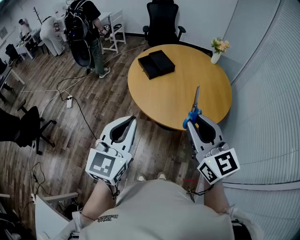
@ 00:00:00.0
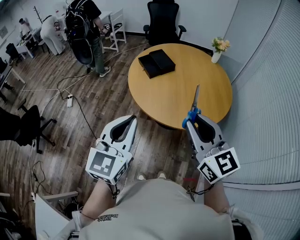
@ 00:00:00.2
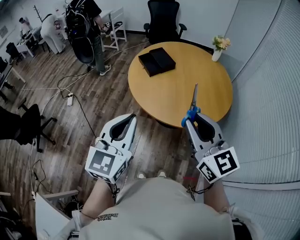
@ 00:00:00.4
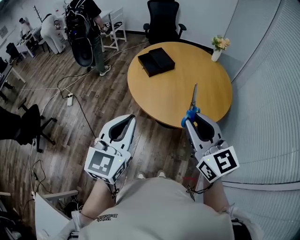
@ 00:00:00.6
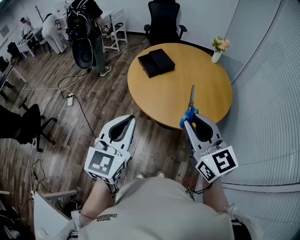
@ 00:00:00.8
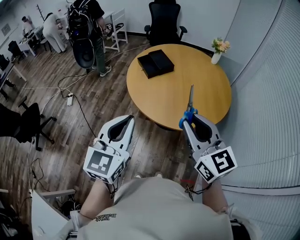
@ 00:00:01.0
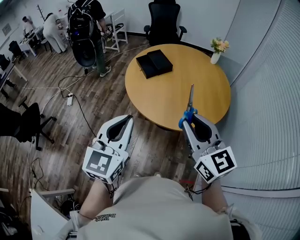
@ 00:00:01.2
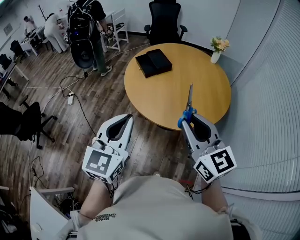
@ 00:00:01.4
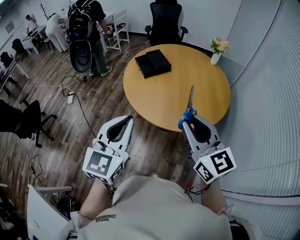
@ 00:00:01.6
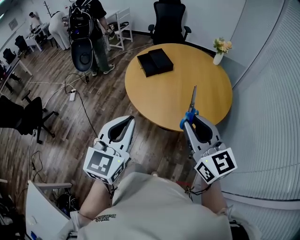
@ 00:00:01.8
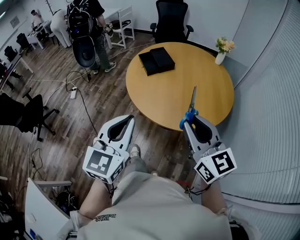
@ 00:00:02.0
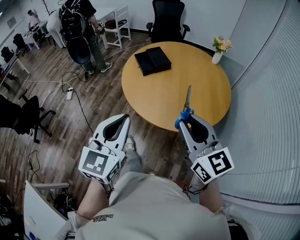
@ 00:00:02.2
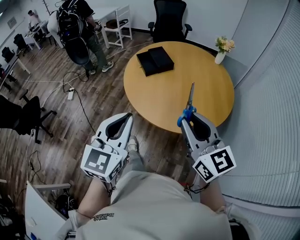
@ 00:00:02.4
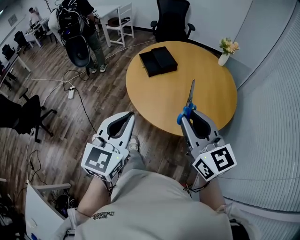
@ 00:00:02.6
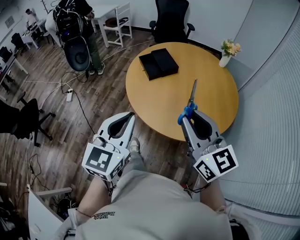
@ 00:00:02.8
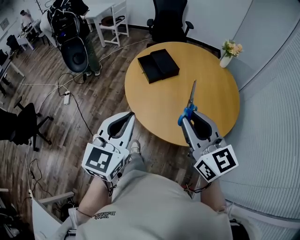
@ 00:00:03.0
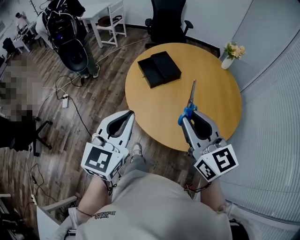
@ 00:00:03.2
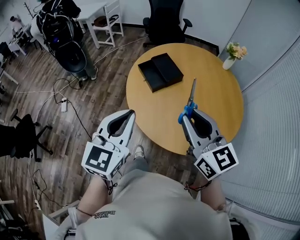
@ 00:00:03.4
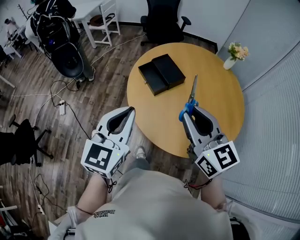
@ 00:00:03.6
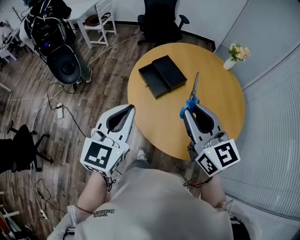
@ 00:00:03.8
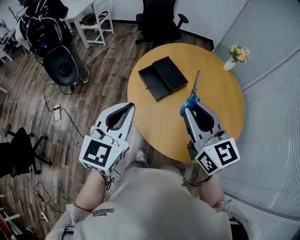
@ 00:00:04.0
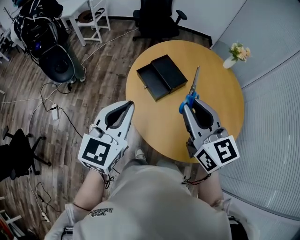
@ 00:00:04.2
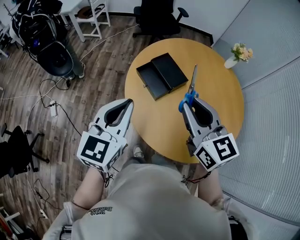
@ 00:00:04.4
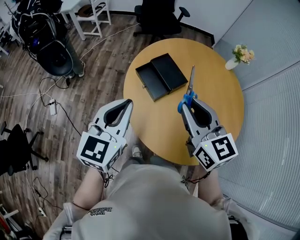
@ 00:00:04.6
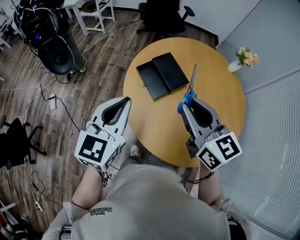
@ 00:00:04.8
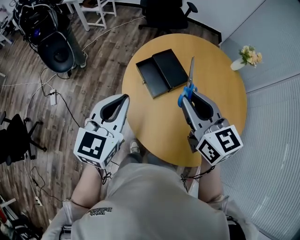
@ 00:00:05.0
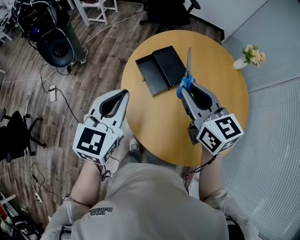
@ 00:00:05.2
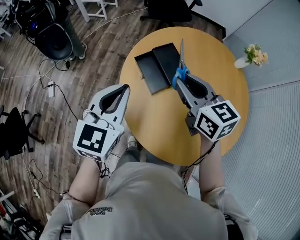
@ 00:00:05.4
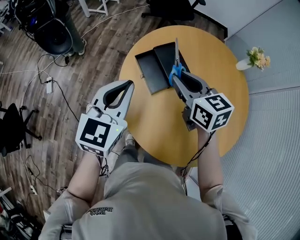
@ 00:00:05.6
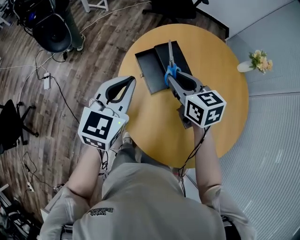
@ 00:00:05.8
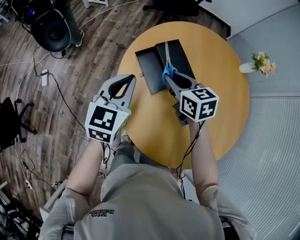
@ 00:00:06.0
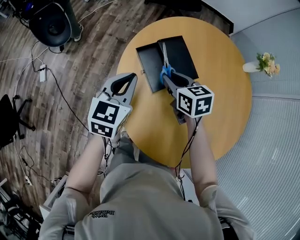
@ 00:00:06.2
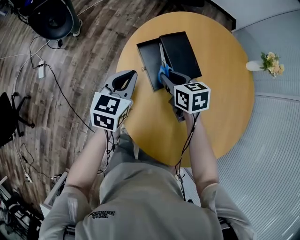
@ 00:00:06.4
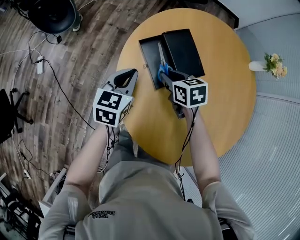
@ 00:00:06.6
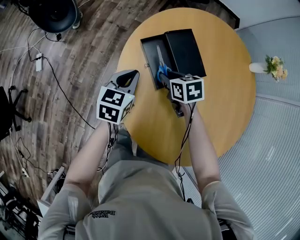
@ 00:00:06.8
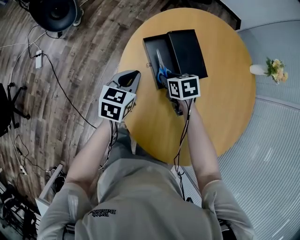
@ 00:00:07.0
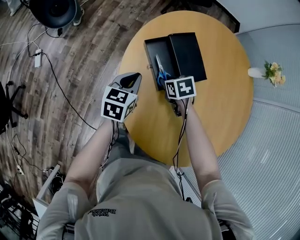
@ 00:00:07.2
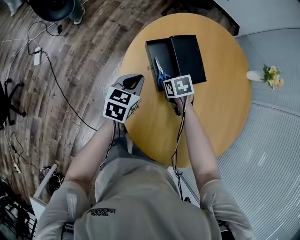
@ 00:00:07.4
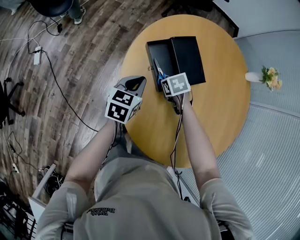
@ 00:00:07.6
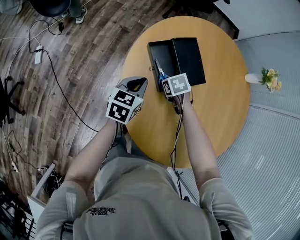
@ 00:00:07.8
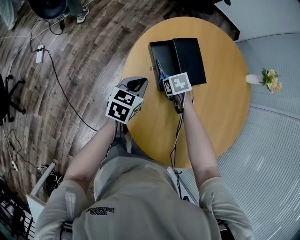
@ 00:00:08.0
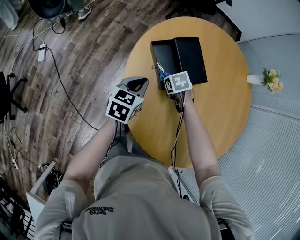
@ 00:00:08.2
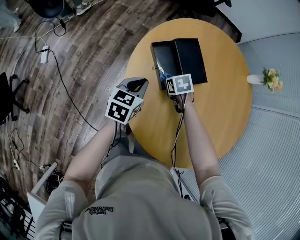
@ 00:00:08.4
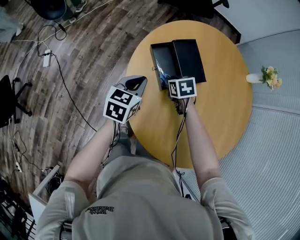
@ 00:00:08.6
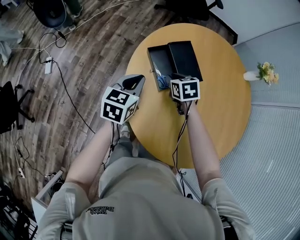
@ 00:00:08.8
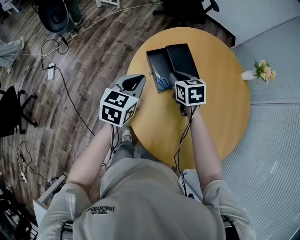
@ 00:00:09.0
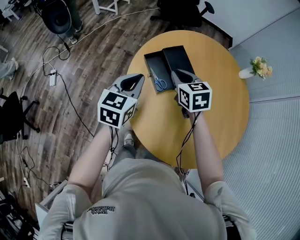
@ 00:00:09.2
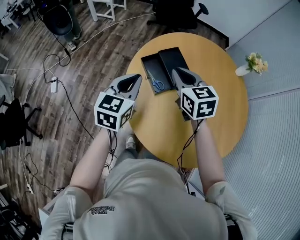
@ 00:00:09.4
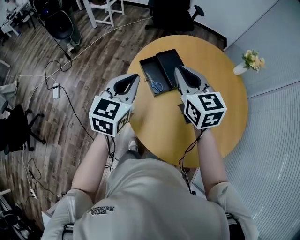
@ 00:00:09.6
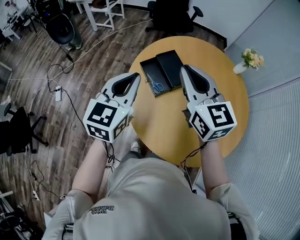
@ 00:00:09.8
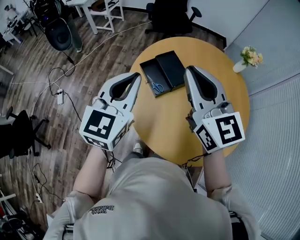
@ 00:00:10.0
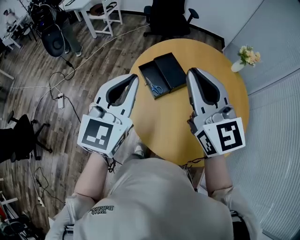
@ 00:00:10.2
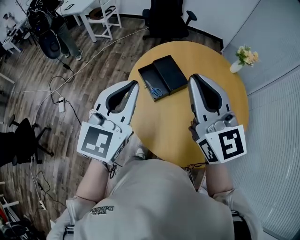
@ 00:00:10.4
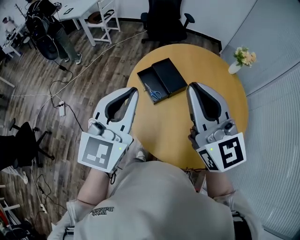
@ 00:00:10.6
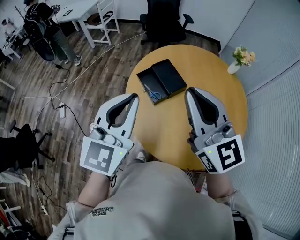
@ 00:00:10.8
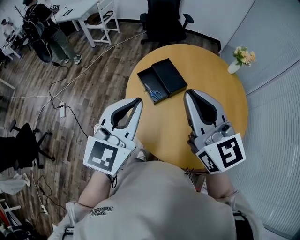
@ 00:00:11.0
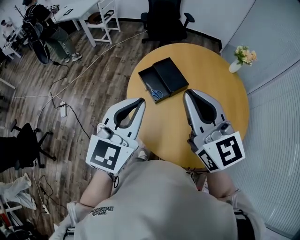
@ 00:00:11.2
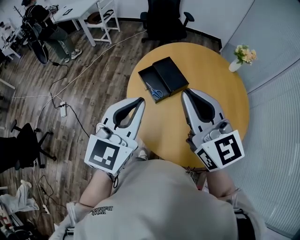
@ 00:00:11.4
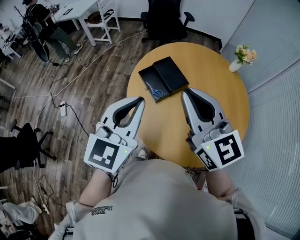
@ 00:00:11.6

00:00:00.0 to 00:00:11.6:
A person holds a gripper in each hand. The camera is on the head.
00:00:00.0 to 00:00:01.4: Both grippers move to the right, some 5 cm.
00:00:01.4 to 00:00:02.8: The grippers both shift forward by roughly 10 cm.
00:00:02.8 to 00:00:04.4: The grippers both shift forward and to the left by roughly 35 cm.
00:00:04.4 to 00:00:05.8: The left gripper is displaced forward and downward by approximately 15 cm, while the right gripper heads forward and downward, covering some 20 cm, and rotates about 30 degrees.
00:00:05.8 to 00:00:07.2: The two grippers go about 25 cm downward. The right gripper tilts its fingers approximately 40 degrees downward; the left gripper changes its angle by some 30 degrees.
00:00:07.2 to 00:00:08.8: The two grippers go some 10 cm upward.
00:00:08.8 to 00:00:10.2: The grippers both shift upward by some 35 cm. The left gripper turns by roughly 40 degrees; the right gripper angles its fingers upward, by roughly 60 degrees.
00:00:10.2 to 00:00:11.6: The left gripper ends up roughly 5 cm from where it was.

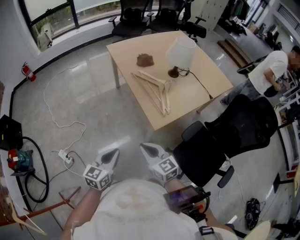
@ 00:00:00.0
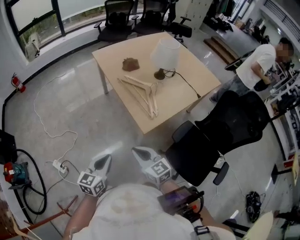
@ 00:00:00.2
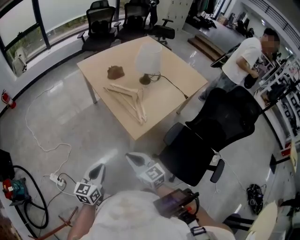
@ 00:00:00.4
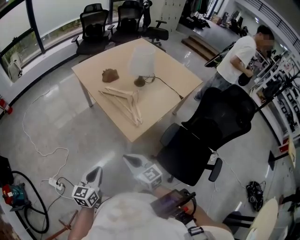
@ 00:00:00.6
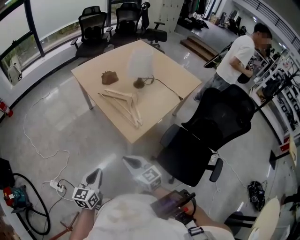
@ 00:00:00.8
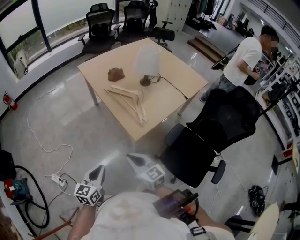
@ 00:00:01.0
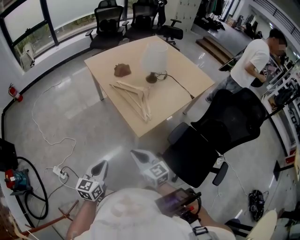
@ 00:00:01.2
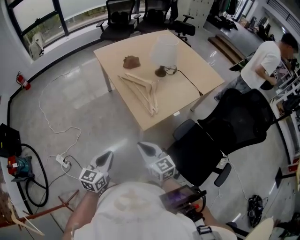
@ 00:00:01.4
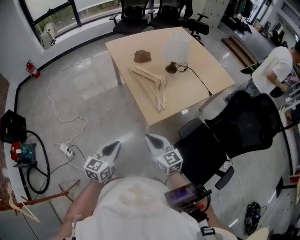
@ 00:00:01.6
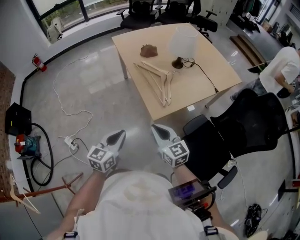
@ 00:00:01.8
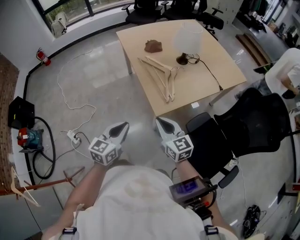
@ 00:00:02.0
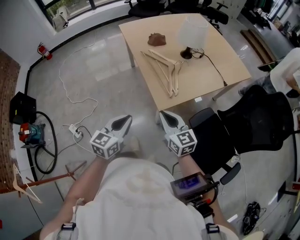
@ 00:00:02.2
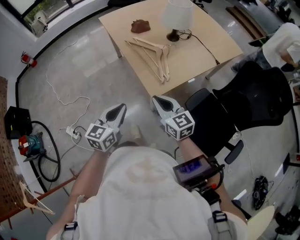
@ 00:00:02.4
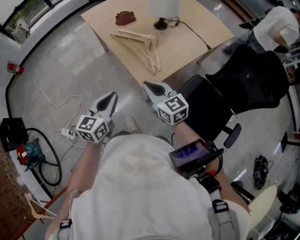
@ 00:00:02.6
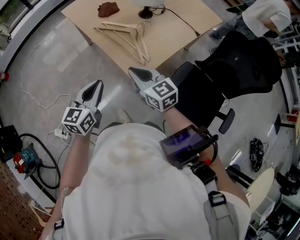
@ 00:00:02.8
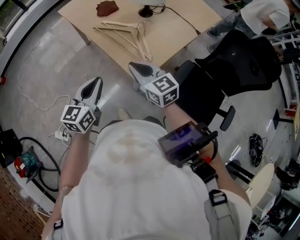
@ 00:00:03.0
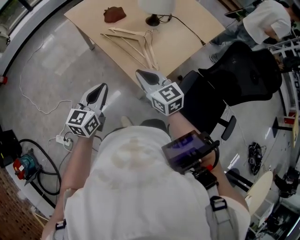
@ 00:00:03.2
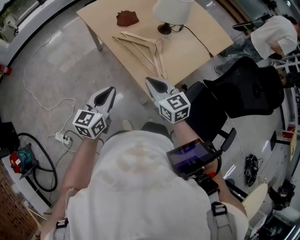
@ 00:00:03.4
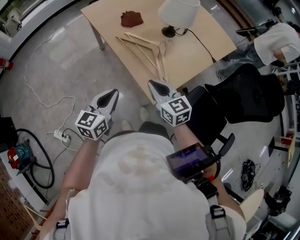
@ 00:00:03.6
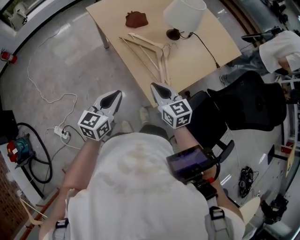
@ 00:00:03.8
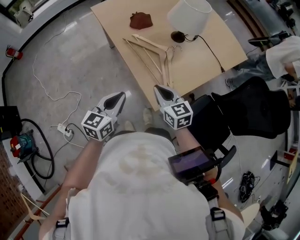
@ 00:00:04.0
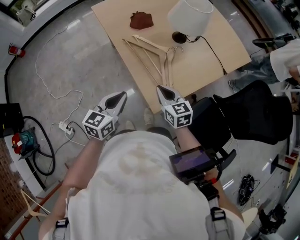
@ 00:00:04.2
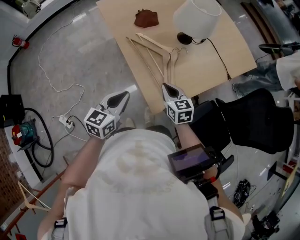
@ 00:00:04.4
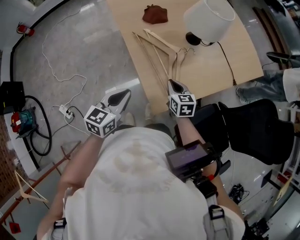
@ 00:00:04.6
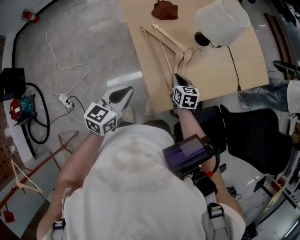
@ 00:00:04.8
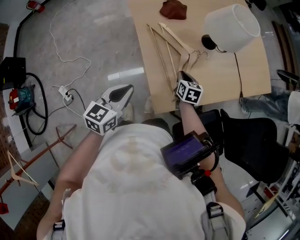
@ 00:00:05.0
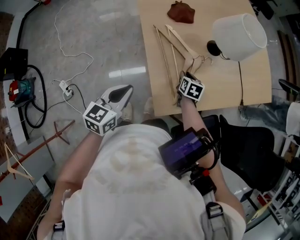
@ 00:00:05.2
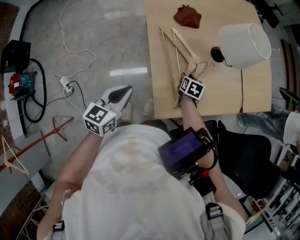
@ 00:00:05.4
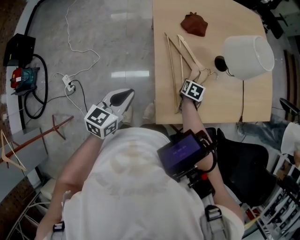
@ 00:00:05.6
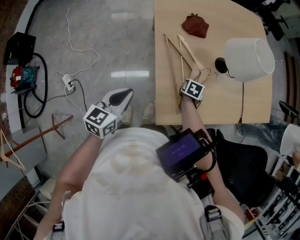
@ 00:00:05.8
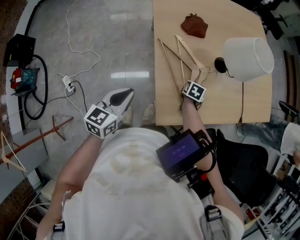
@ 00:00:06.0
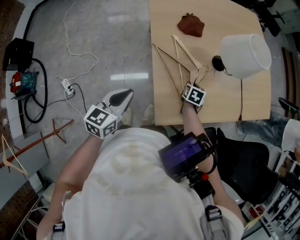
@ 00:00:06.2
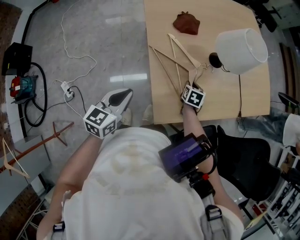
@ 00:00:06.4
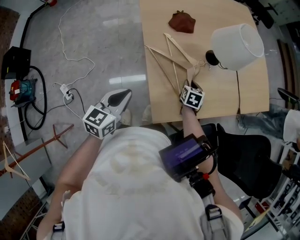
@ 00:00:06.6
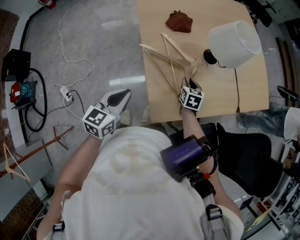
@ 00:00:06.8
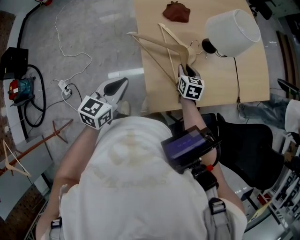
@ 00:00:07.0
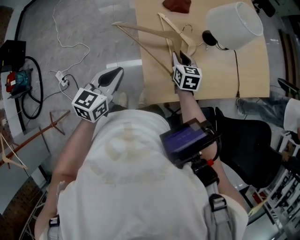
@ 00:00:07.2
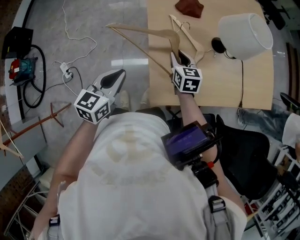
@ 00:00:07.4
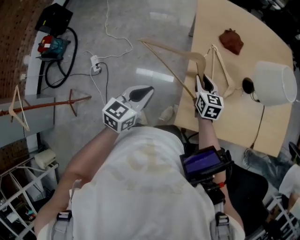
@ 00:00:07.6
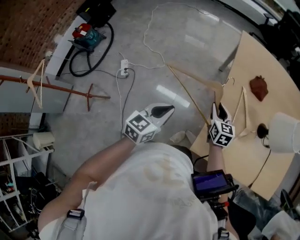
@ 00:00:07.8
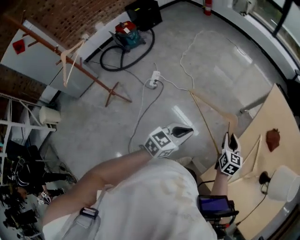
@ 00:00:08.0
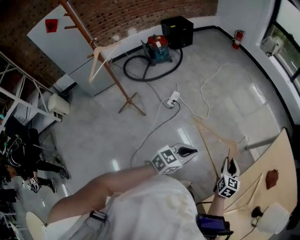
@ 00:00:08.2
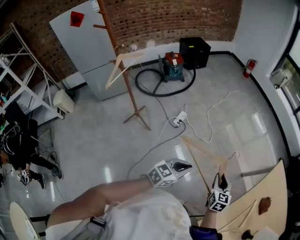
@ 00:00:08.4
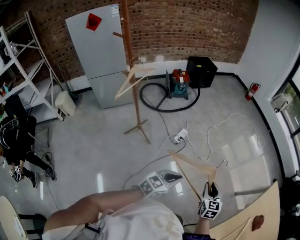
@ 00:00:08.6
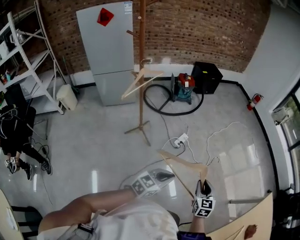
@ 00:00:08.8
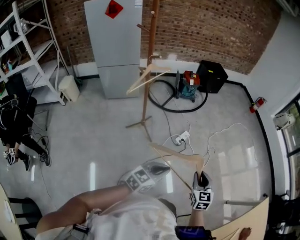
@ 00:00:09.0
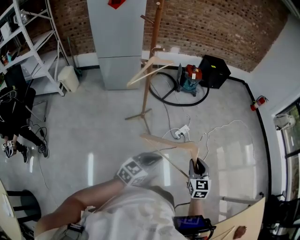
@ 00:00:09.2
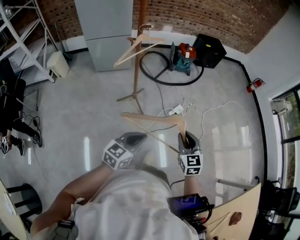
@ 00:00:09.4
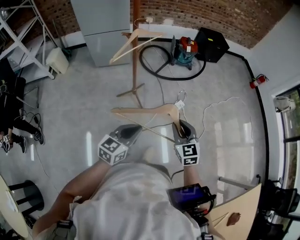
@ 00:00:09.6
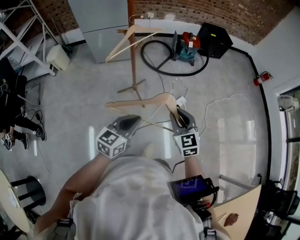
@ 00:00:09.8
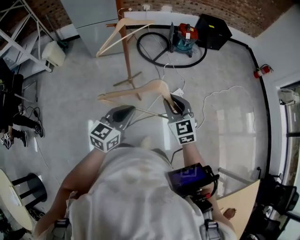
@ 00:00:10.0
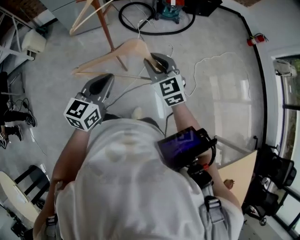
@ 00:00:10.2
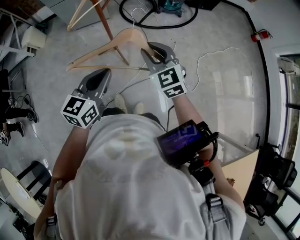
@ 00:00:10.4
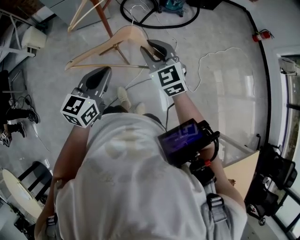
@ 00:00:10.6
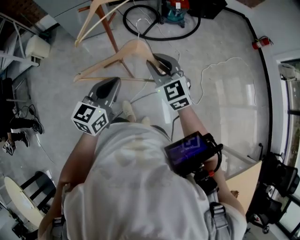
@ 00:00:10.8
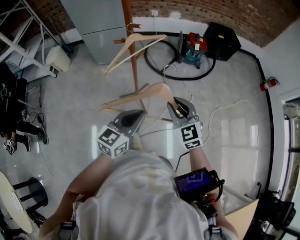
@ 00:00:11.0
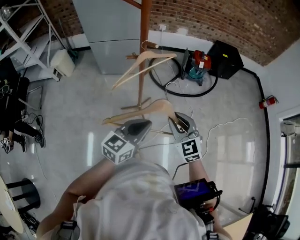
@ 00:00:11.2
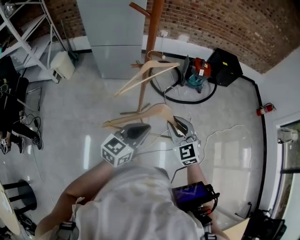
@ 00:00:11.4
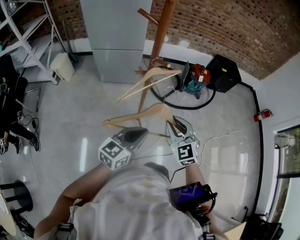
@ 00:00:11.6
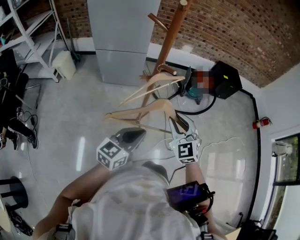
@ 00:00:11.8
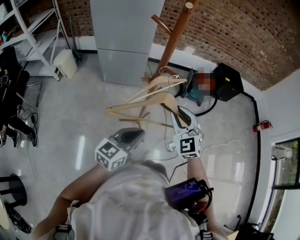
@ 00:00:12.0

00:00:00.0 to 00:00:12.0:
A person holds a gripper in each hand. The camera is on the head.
00:00:00.0 to 00:00:01.6: The grippers both shift to the right by approximately 5 cm.
00:00:01.6 to 00:00:03.0: Both grippers travel together forward, about 20 cm.
00:00:03.0 to 00:00:04.4: The right gripper goes approximately 15 cm downward, forward and to the right; the left gripper is displaced forward by approximately 5 cm.
00:00:04.4 to 00:00:06.0: The left gripper shifts some 5 cm to the left, while the right gripper goes about 20 cm forward and downward, swivels some 30 degrees, and opens.
00:00:06.0 to 00:00:07.6: The right gripper ends up roughly 20 cm from where it was, and tips its fingers upward by some 30 degrees.
00:00:07.6 to 00:00:09.0: Both grippers are carried roughly 60 cm. The left gripper changes its angle by some 50 degrees. The right gripper swivels about 70 degrees.
00:00:09.0 to 00:00:10.4: The right gripper moves some 30 cm, and turns by approximately 40 degrees; the left gripper moves roughly 20 cm, and swivels about 30 degrees.
00:00:10.4 to 00:00:12.0: The grippers both shift forward and to the left by approximately 25 cm. The right gripper rotates about 20 degrees.
